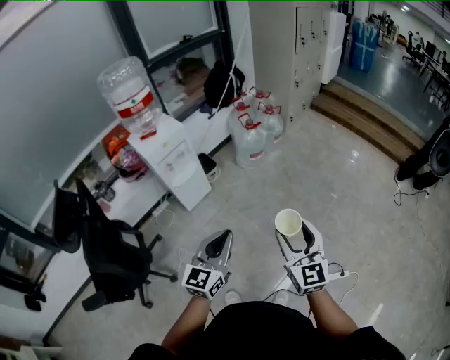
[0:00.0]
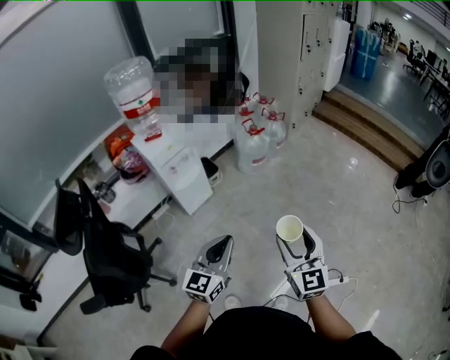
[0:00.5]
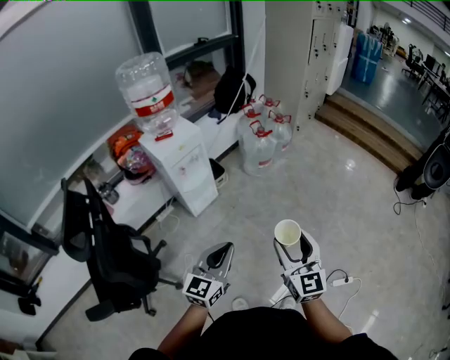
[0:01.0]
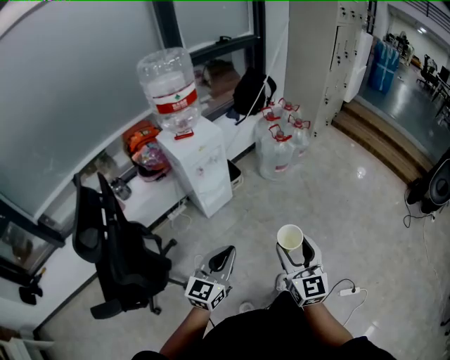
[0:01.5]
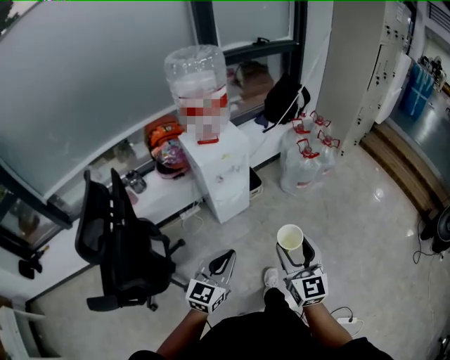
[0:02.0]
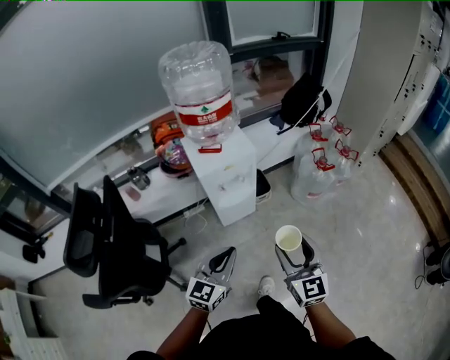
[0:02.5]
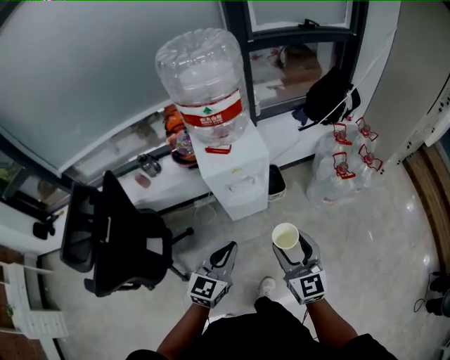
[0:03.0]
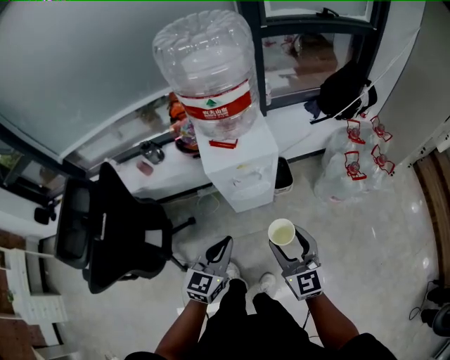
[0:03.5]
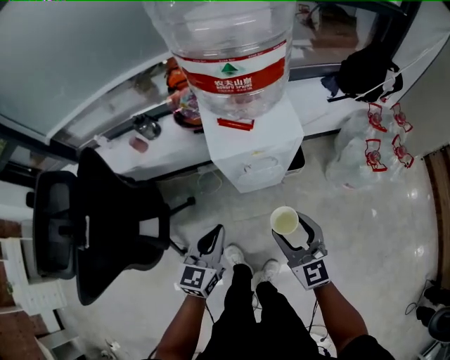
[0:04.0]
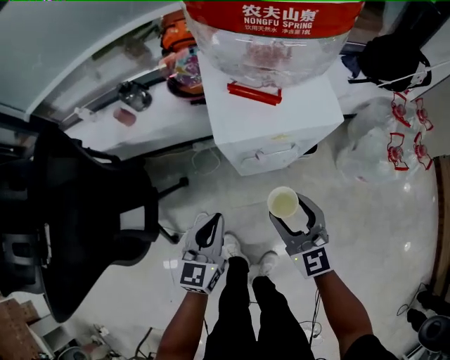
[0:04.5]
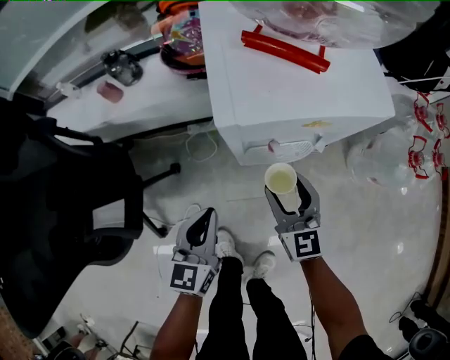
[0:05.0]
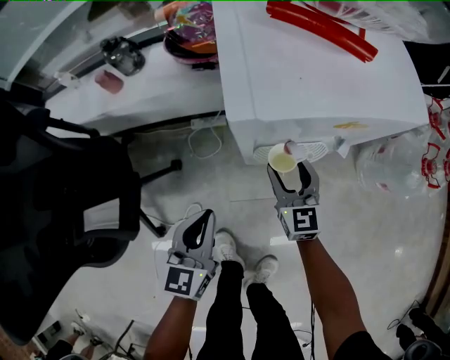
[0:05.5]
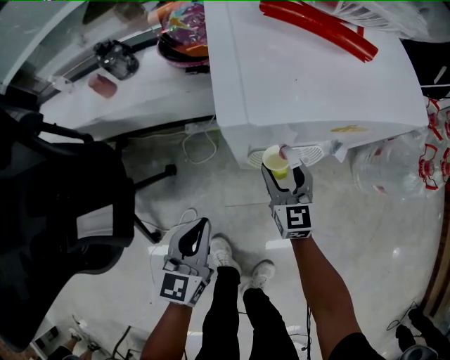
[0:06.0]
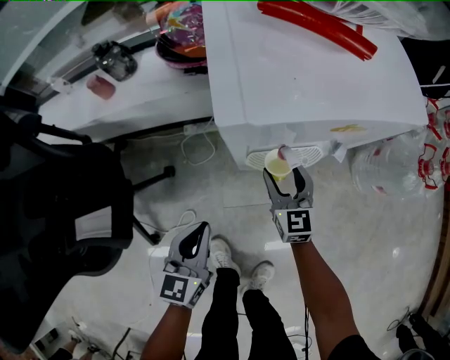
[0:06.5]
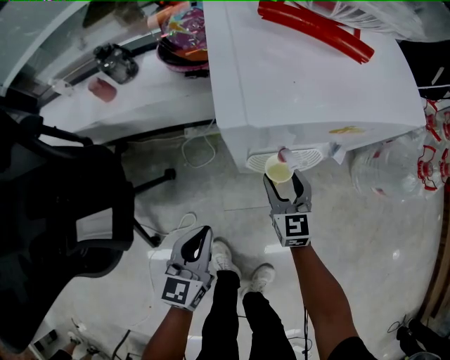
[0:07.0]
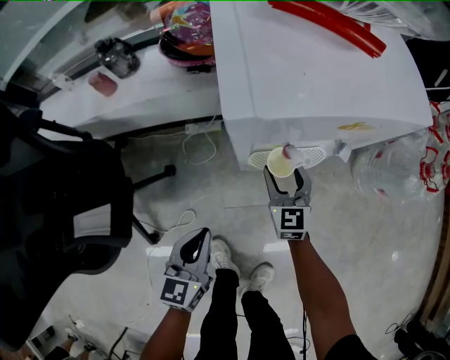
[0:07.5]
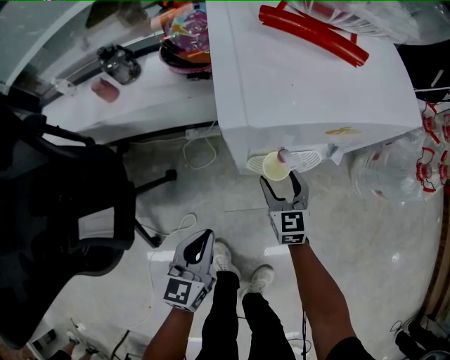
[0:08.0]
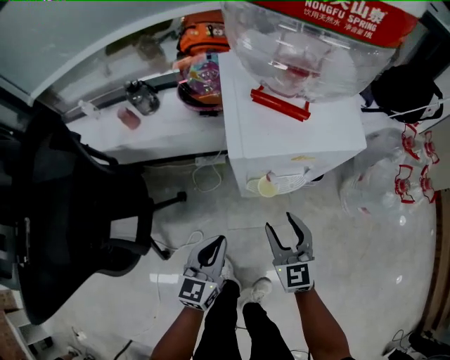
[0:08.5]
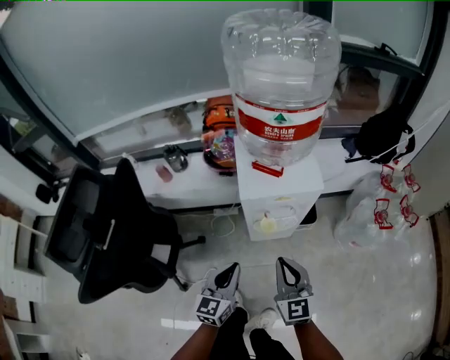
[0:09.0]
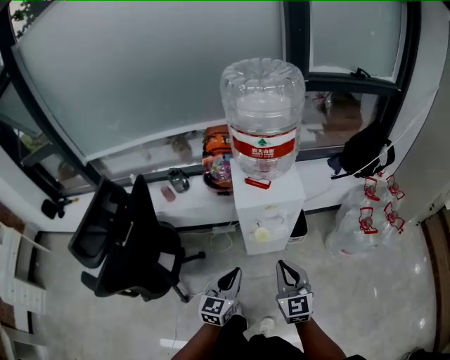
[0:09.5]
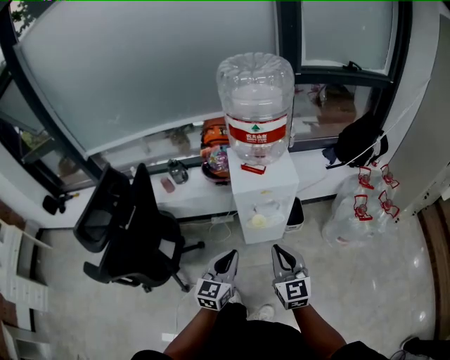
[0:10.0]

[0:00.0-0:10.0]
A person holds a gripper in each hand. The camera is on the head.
0.0 to 2.0 s: The left gripper is displaced to the left by some 20 cm; the right gripper heads to the left and forward, covering about 25 cm.
2.0 to 4.0 s: The left gripper moves some 30 cm, and turns by some 30 degrees. The right gripper changes place by some 35 cm, and changes its angle by roughly 40 degrees.
4.0 to 6.0 s: The right gripper travels downward and forward by about 40 cm, while the left gripper goes approximately 25 cm downward.
6.0 to 8.0 s: The grippers move only a little.
8.0 to 10.0 s: The right gripper shifts about 50 cm upward and backward, and closes its fingers; the left gripper heads upward, covering about 30 cm.

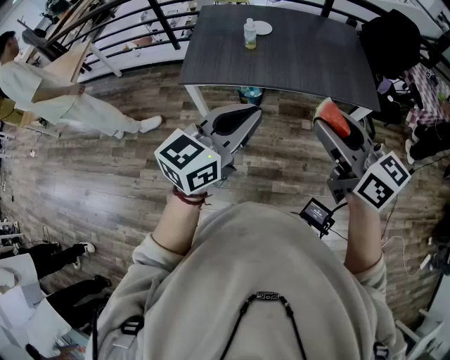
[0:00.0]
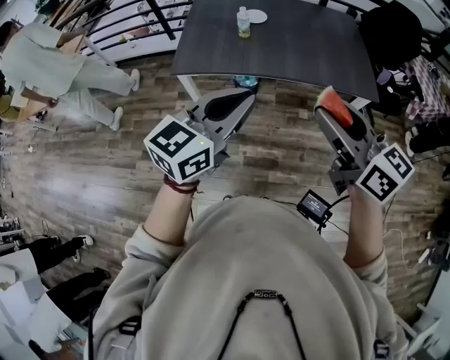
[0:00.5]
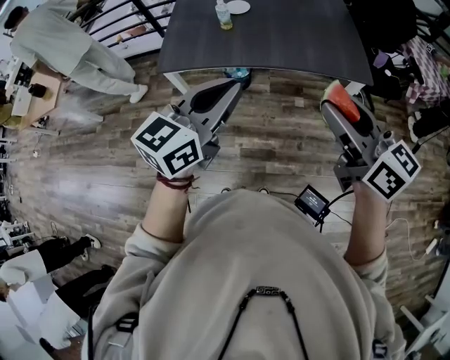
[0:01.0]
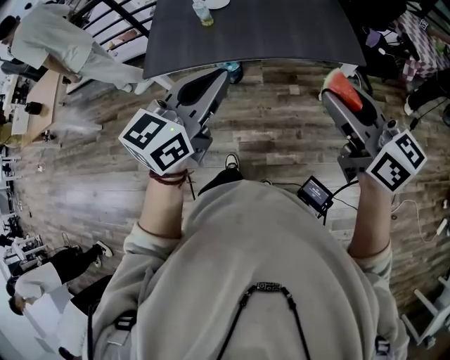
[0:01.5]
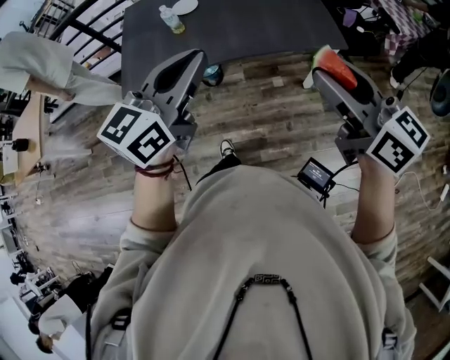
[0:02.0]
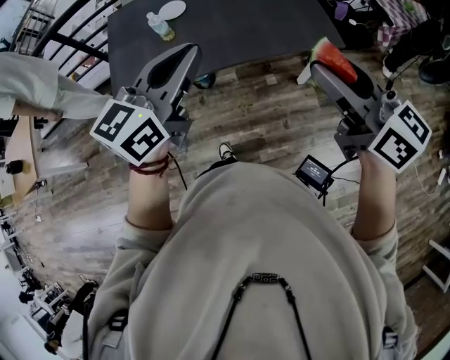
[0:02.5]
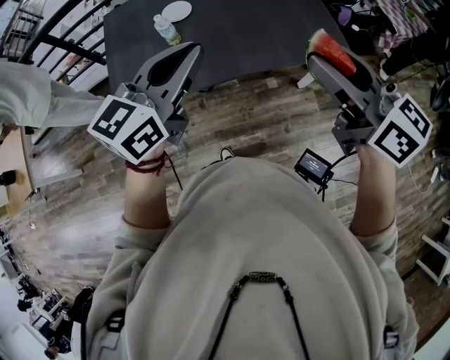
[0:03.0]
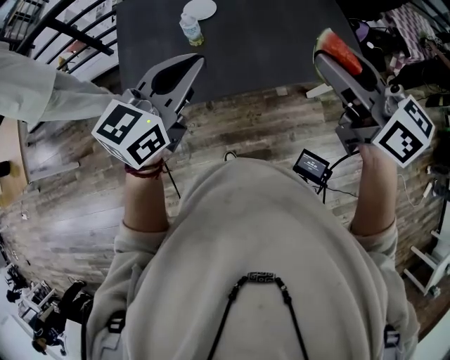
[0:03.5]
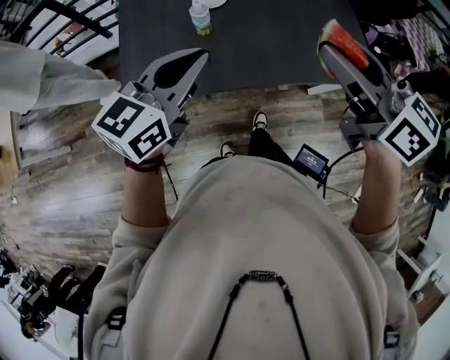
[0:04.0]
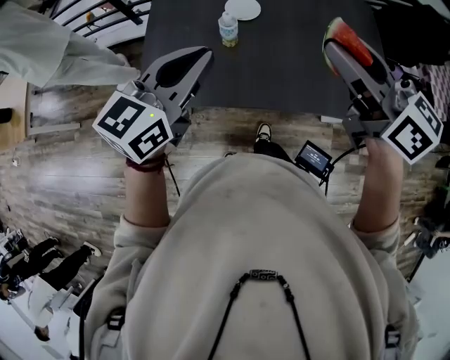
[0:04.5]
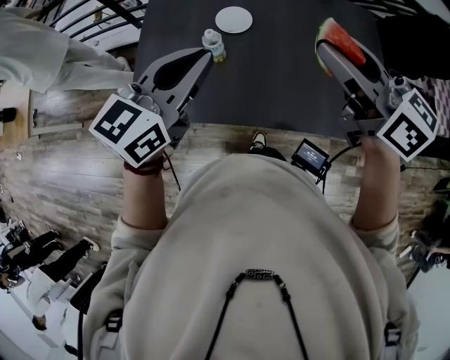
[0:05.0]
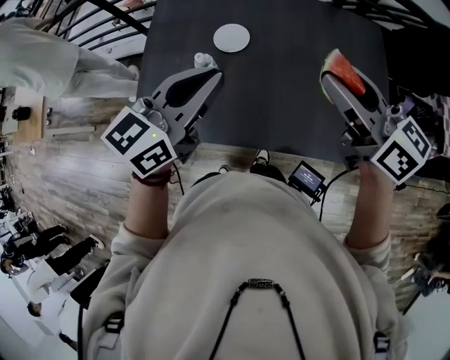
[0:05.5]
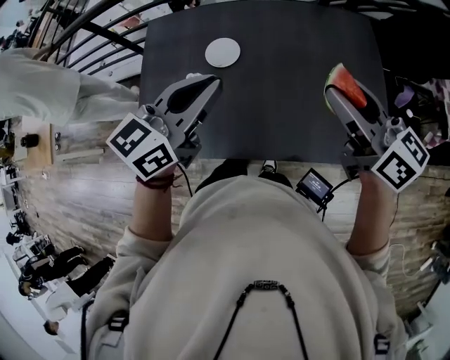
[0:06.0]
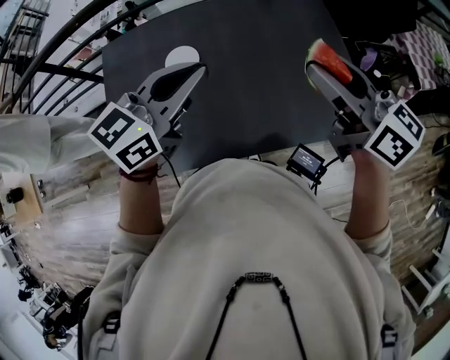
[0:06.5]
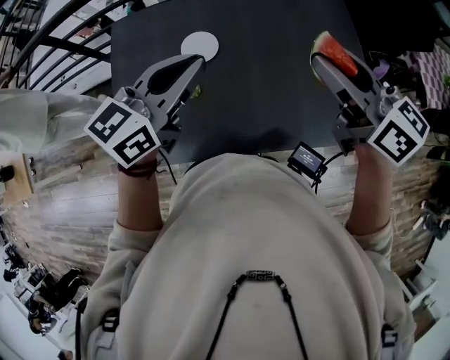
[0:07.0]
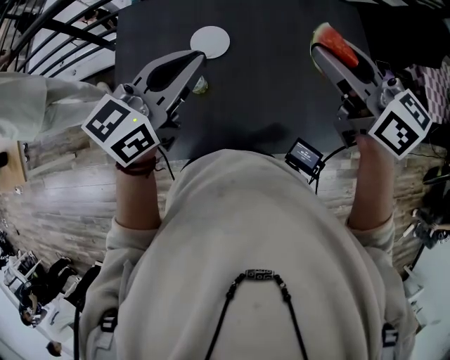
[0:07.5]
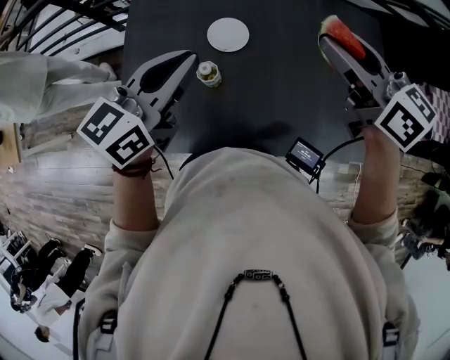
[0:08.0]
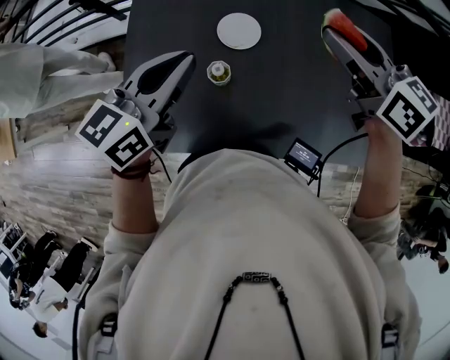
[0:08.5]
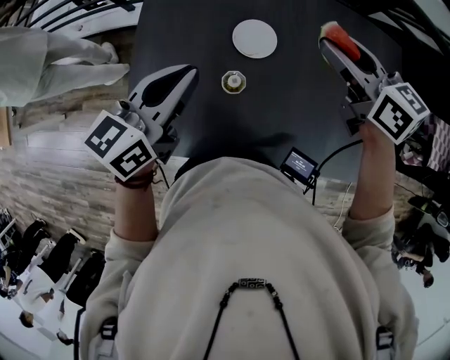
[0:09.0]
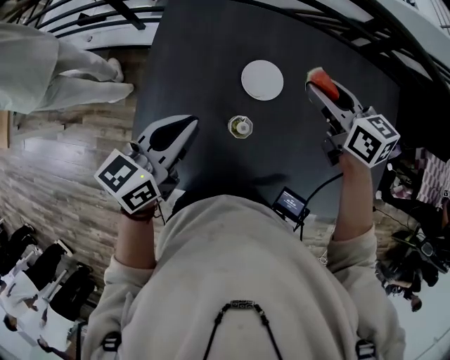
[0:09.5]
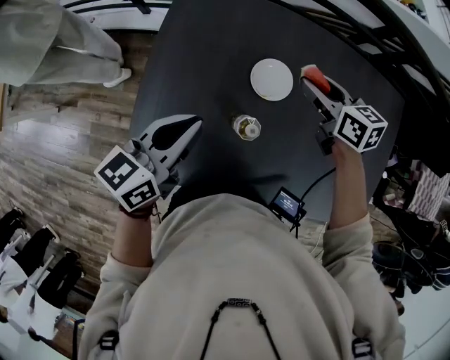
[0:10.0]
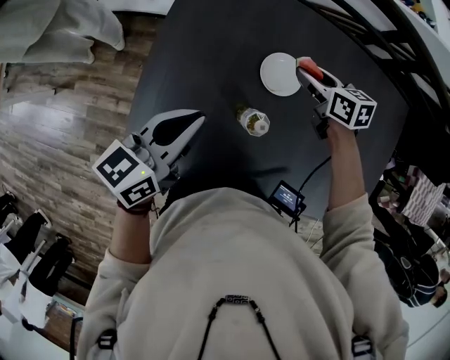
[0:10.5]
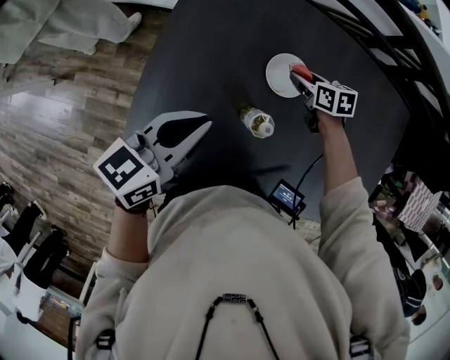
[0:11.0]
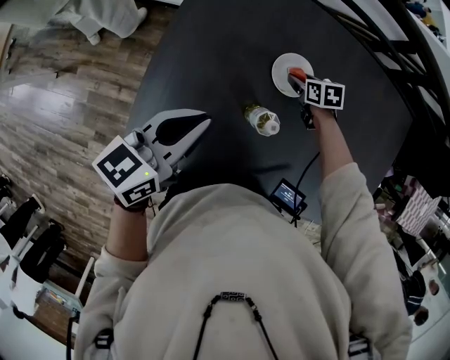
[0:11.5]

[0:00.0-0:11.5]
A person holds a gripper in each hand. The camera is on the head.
0.0 to 2.0 s: The left gripper shifts about 15 cm forward and to the right. The right gripper moves to the right, about 20 cm.
2.0 to 4.0 s: The left gripper travels to the left, forward and downward by roughly 30 cm. Meanwhile the right gripper goes some 35 cm forward and to the left.
4.0 to 6.0 s: The left gripper shifts about 10 cm upward.
6.0 to 7.5 s: The right gripper goes about 10 cm upward and to the left.
7.5 to 9.5 s: The left gripper is displaced to the left by approximately 15 cm, and turns by about 20 degrees, while the right gripper shifts some 20 cm forward, to the left and downward.
9.5 to 11.5 s: The left gripper changes place by about 5 cm. Meanwhile the right gripper shifts some 30 cm downward, and angles its fingers downward, by about 30 degrees.

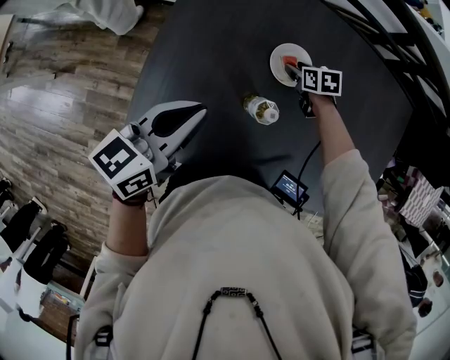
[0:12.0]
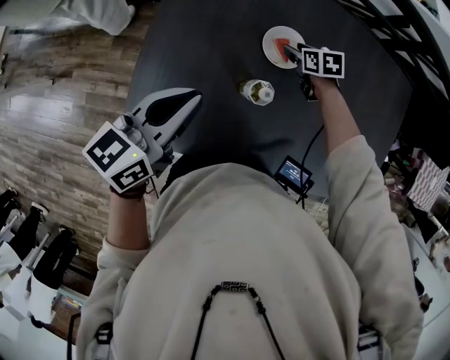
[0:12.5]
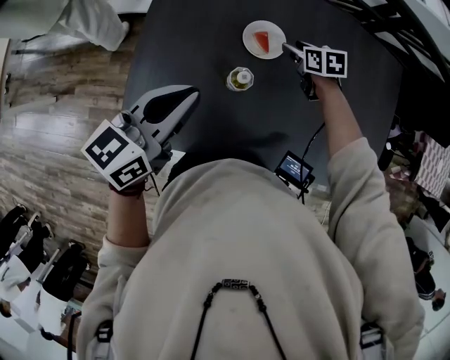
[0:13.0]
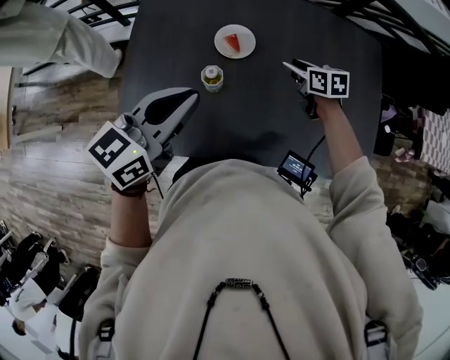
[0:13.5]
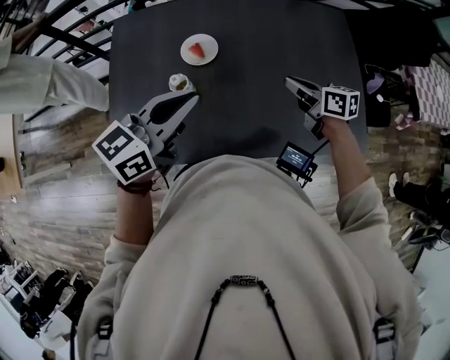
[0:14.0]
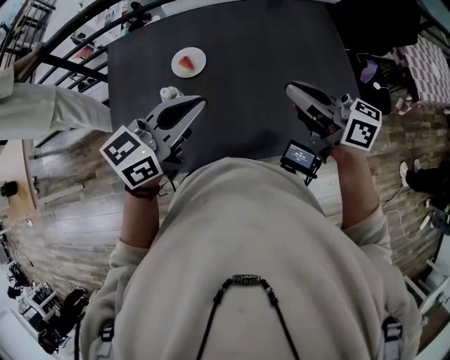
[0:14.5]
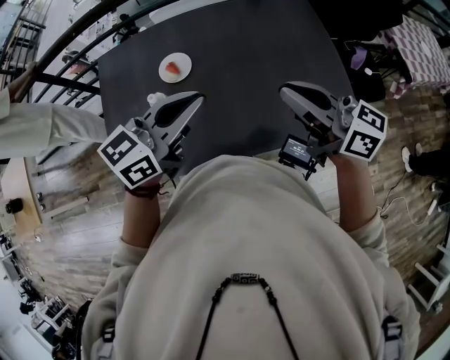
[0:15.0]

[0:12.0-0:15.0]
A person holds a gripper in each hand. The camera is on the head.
12.0 to 13.5 s: The left gripper goes about 10 cm upward and to the right. Meanwhile the right gripper is displaced upward, to the right and backward by approximately 20 cm.
13.5 to 15.0 s: The right gripper travels upward, backward and to the right by some 35 cm, tilts its fingers about 50 degrees upward, and closes up; the left gripper travels to the right by approximately 15 cm, and rotates approximately 20 degrees.

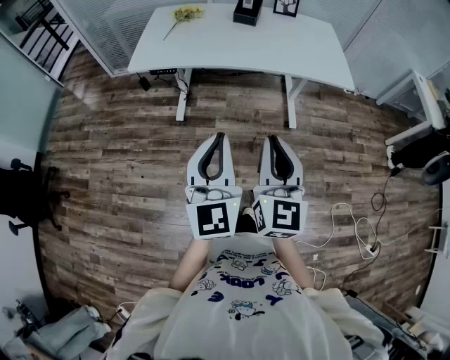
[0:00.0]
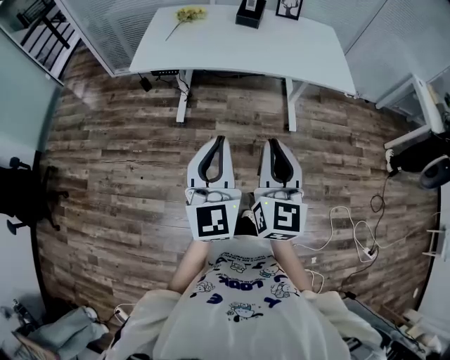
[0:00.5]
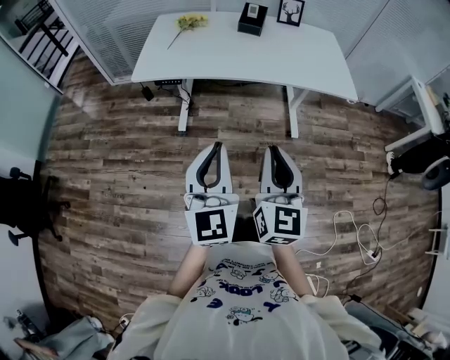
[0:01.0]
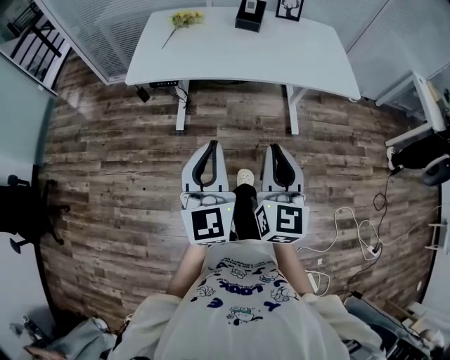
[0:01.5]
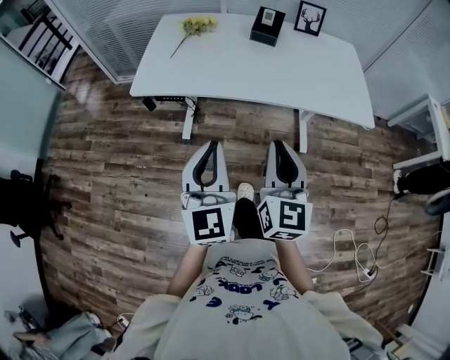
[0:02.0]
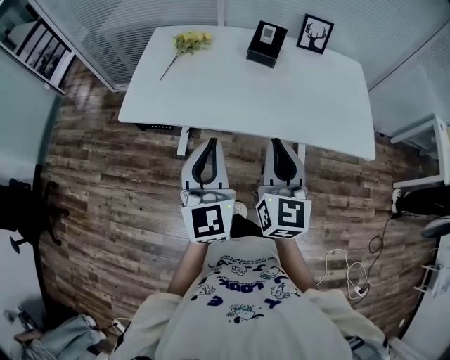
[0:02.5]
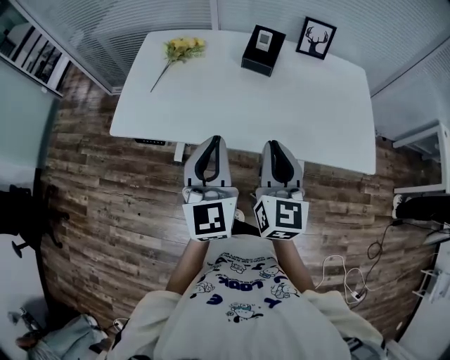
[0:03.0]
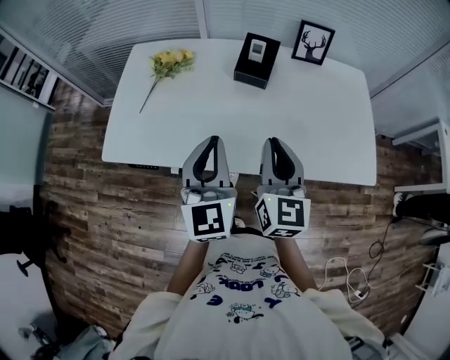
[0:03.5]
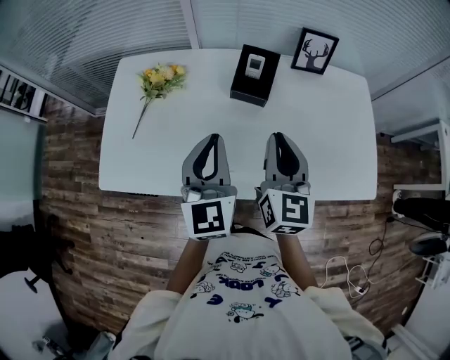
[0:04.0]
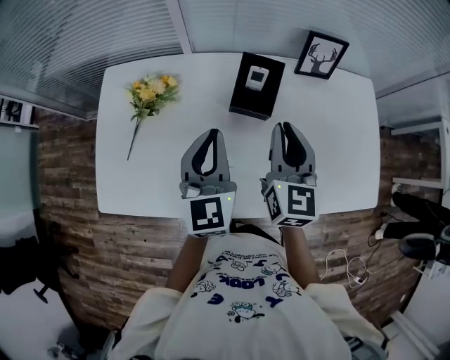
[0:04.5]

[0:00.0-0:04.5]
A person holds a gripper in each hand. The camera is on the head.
0.0 to 2.0 s: Both grippers move forward, roughly 20 cm.
2.0 to 4.5 s: The two grippers travel together, forward, roughly 60 cm.
